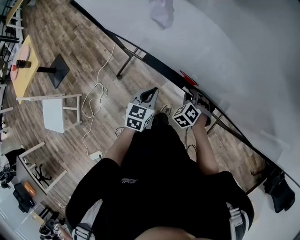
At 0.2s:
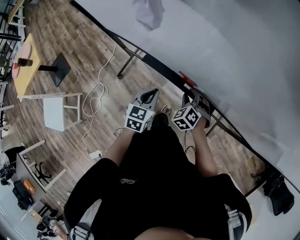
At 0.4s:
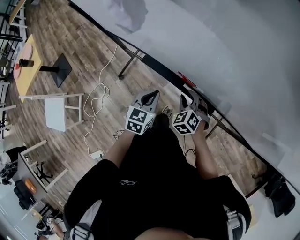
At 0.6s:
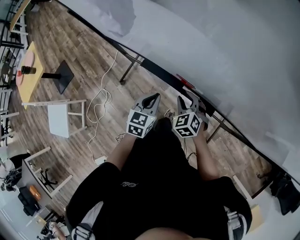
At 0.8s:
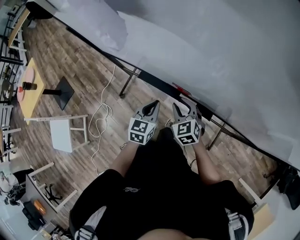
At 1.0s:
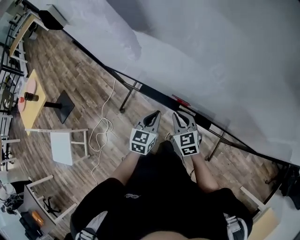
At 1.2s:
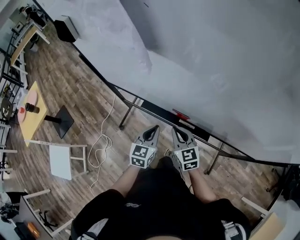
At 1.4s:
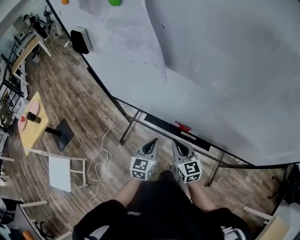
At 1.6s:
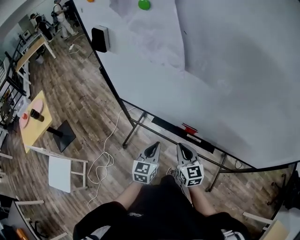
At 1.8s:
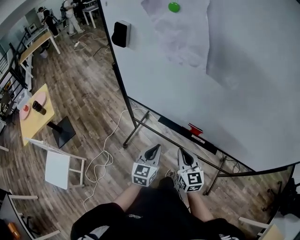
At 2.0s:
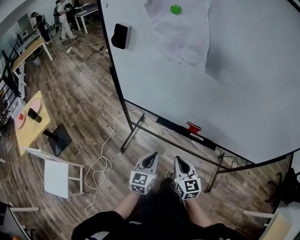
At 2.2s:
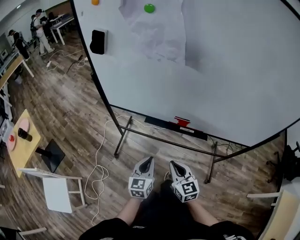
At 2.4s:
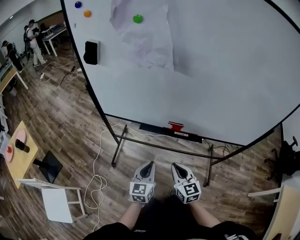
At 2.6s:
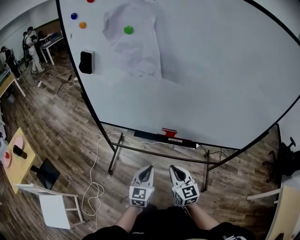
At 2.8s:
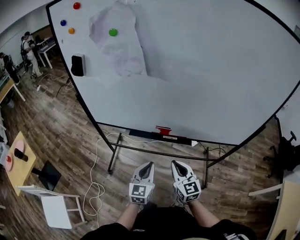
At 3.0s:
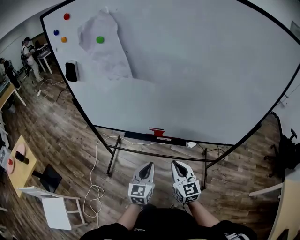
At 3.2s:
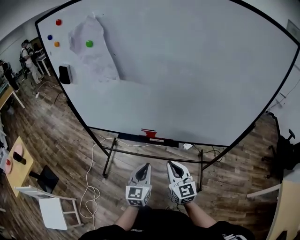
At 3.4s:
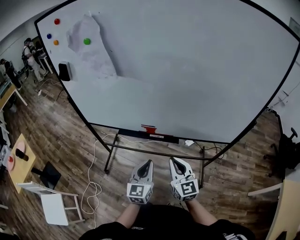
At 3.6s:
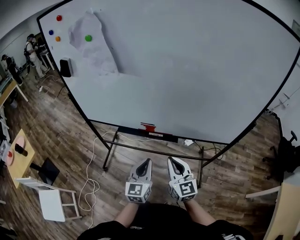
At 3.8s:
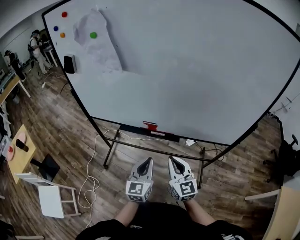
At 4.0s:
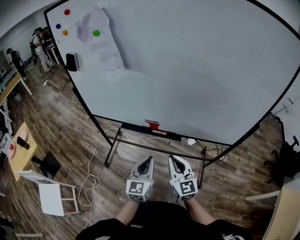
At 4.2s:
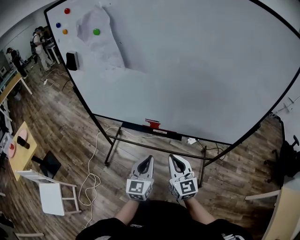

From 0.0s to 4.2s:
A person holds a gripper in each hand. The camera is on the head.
From 0.0s to 1.4s: The left gripper shifts roughly 10 cm upward; the right gripper travels upward by roughly 20 cm, and points its fingers approximately 40 degrees further upward.
From 1.4s to 2.8s: The two grippers go roughly 15 cm backward.
From 2.8s to 4.2s: The two grippers go some 10 cm to the right.

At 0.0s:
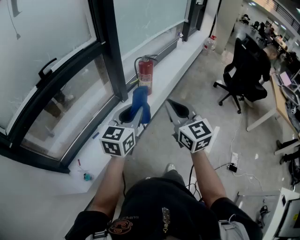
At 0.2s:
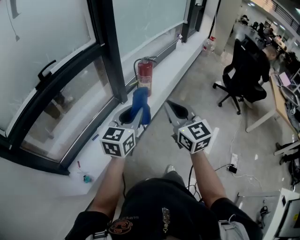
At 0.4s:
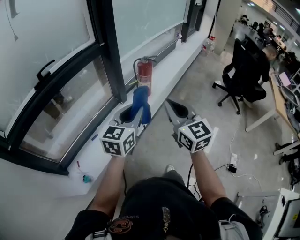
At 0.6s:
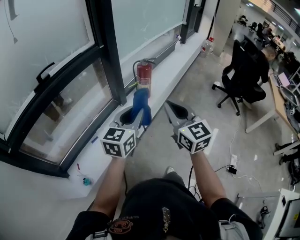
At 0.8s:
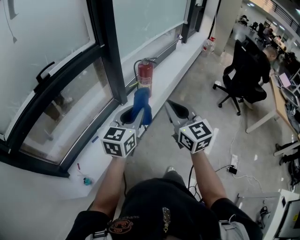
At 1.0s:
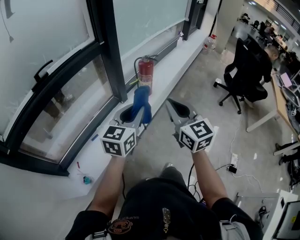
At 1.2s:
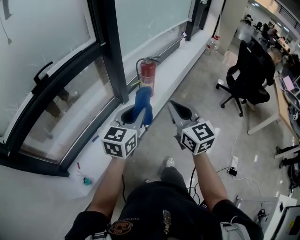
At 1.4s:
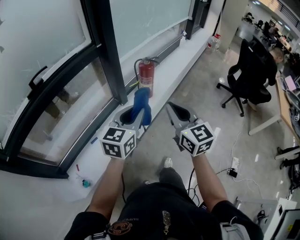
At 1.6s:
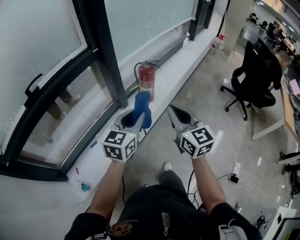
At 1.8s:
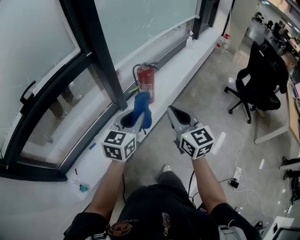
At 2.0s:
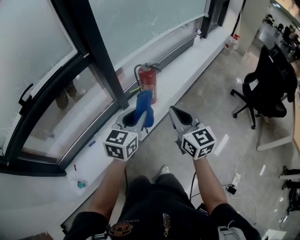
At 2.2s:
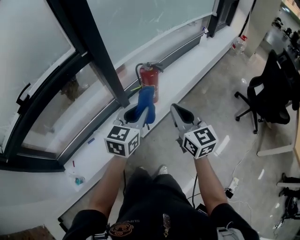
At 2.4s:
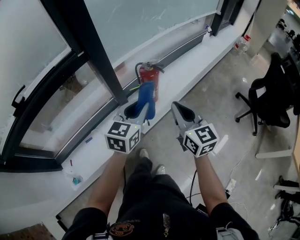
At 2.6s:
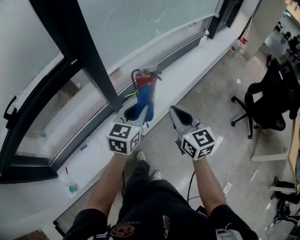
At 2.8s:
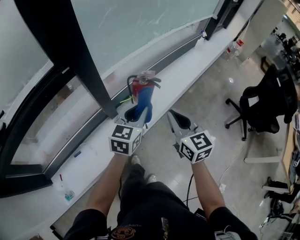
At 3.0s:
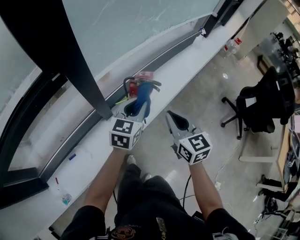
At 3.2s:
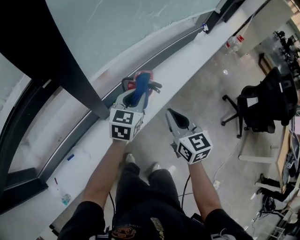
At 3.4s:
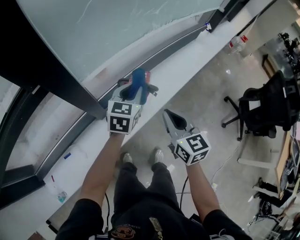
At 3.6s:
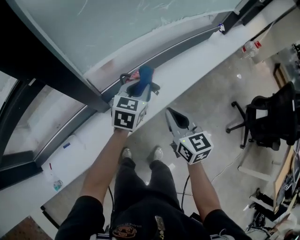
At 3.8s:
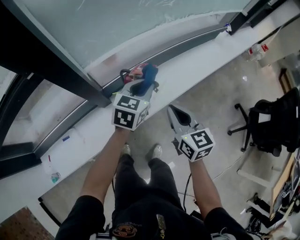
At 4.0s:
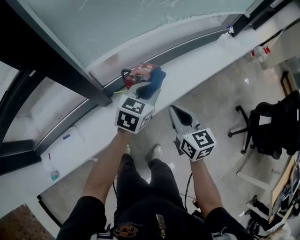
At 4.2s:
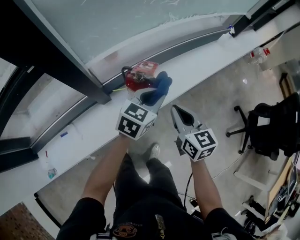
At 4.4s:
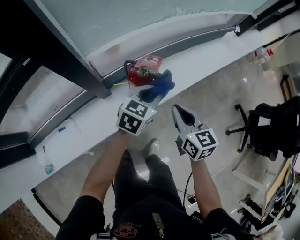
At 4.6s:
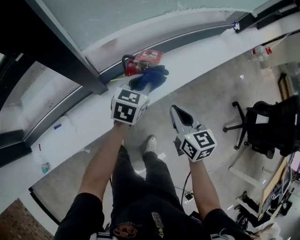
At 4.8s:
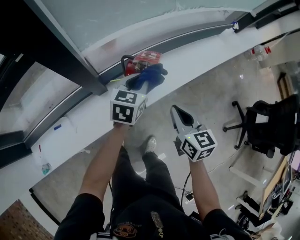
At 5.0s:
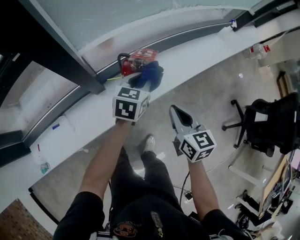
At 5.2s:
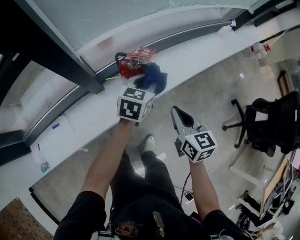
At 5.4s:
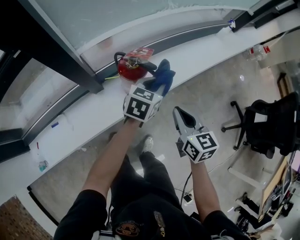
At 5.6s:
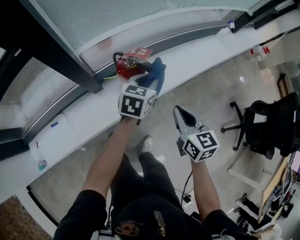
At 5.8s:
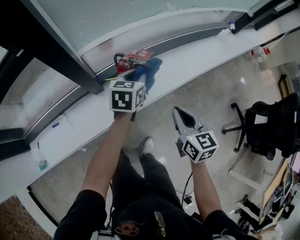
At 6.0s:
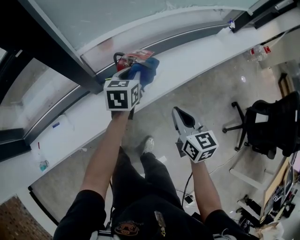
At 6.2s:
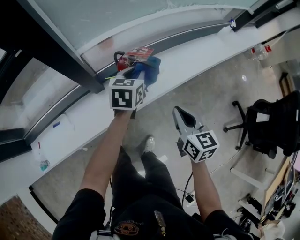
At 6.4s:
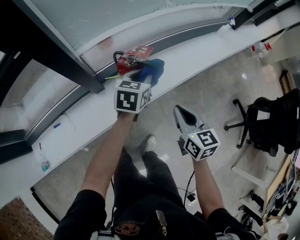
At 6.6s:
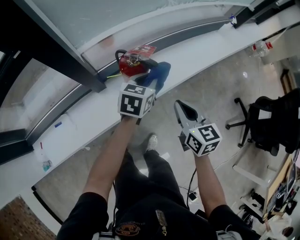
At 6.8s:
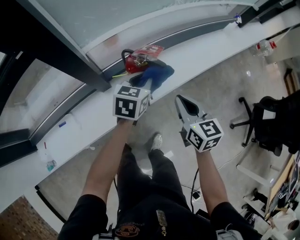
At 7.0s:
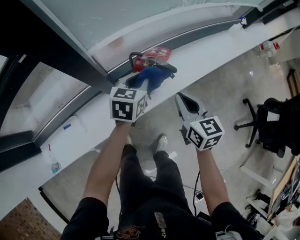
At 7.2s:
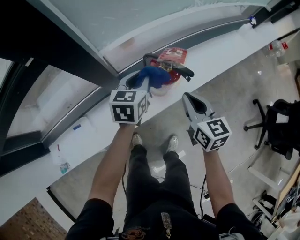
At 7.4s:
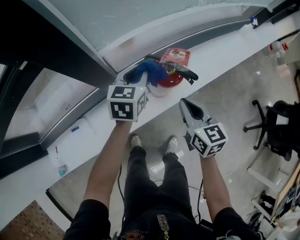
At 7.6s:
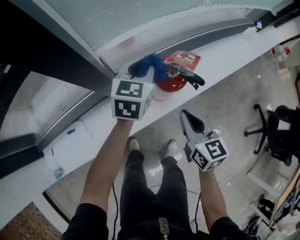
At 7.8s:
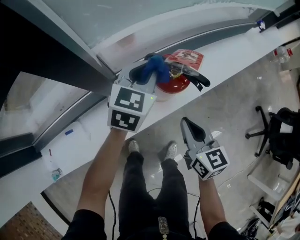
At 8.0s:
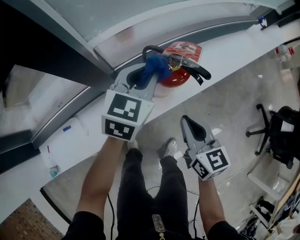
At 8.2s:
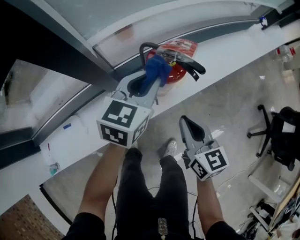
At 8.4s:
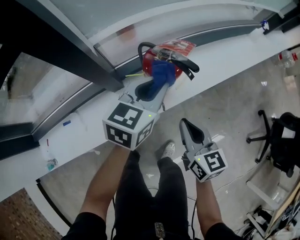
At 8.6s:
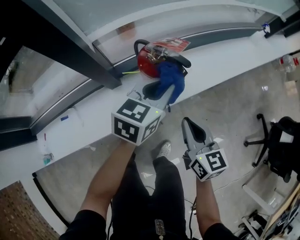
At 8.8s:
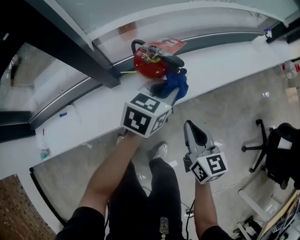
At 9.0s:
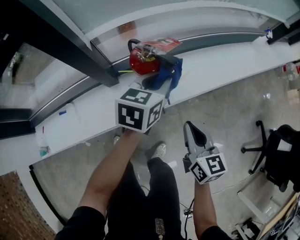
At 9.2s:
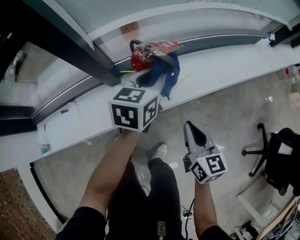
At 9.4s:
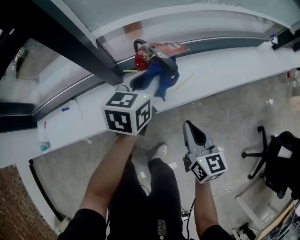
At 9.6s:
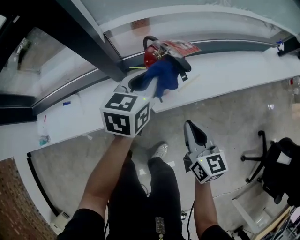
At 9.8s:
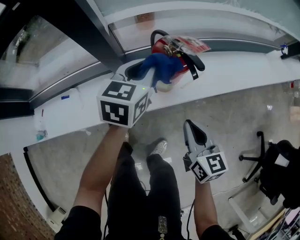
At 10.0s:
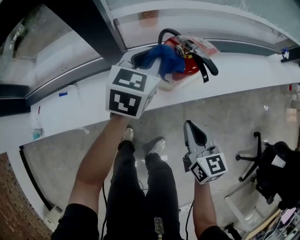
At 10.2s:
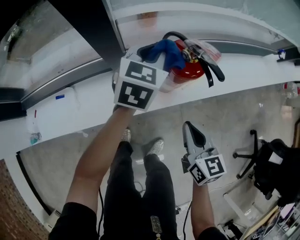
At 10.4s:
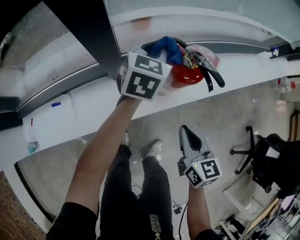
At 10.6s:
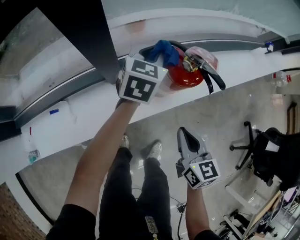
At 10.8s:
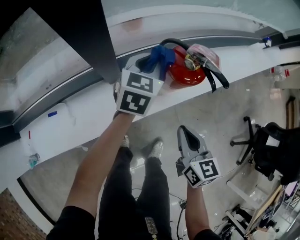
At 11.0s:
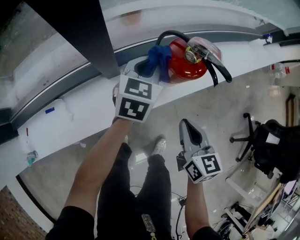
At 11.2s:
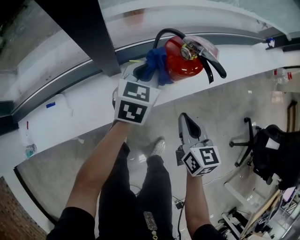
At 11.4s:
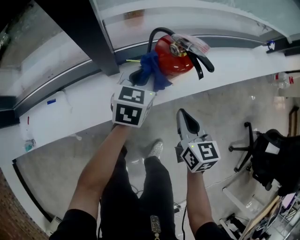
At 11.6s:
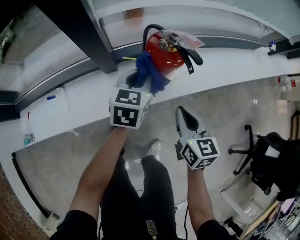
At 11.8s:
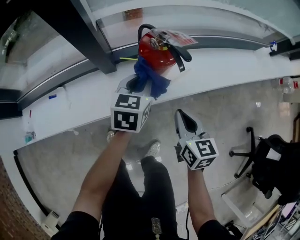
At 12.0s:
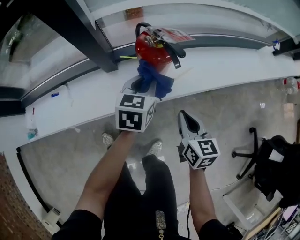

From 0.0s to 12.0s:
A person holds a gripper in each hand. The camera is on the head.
From 0.0s to 1.6s: The grippers both shift forward by roughly 10 cm.
From 1.6s to 3.0s: The two grippers go some 30 cm forward.
From 3.0s to 4.4s: The right gripper heads downward, forward and to the right, covering about 15 cm; the left gripper moves downward, to the right and forward, approximately 15 cm.
From 4.4s to 6.0s: The right gripper changes place by roughly 5 cm. Meanwhile the left gripper moves left and right over some 10 cm, changing direction 2 times, and rotates about 30 degrees.
From 6.0s to 7.6s: The left gripper is displaced to the left and forward by roughly 10 cm, while the right gripper heads to the left, downward and forward, covering roughly 15 cm.
From 7.6s to 9.0s: The grippers both shift to the right and backward by some 15 cm.
From 9.0s to 10.4s: The left gripper travels to the left and forward by some 15 cm, while the right gripper travels to the left by approximately 10 cm.
From 10.4s to 12.0s: The left gripper heads backward, to the right and downward, covering approximately 15 cm, while the right gripper heads to the right, covering some 10 cm.

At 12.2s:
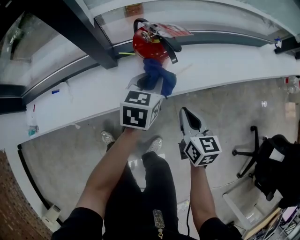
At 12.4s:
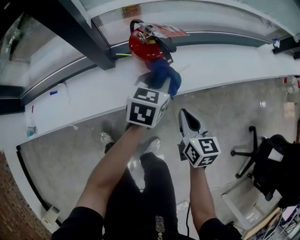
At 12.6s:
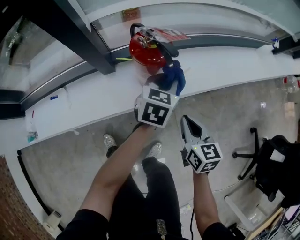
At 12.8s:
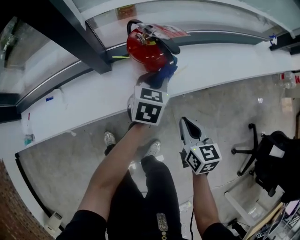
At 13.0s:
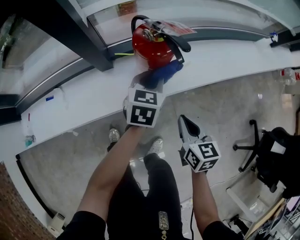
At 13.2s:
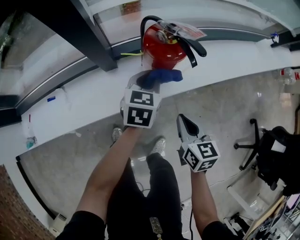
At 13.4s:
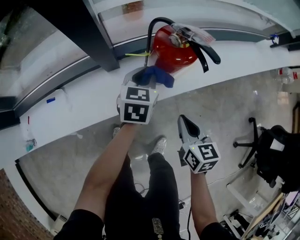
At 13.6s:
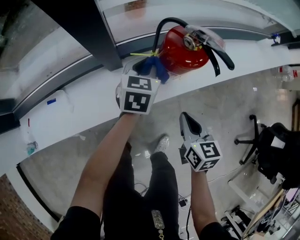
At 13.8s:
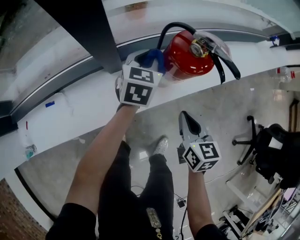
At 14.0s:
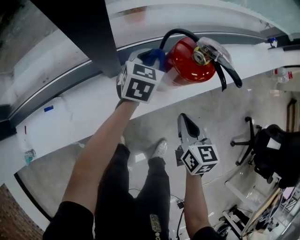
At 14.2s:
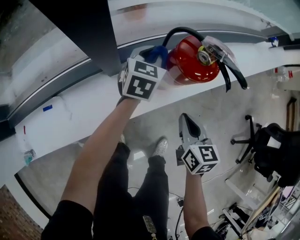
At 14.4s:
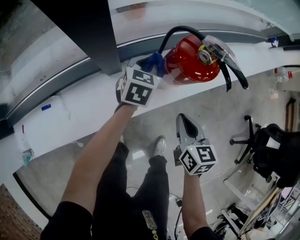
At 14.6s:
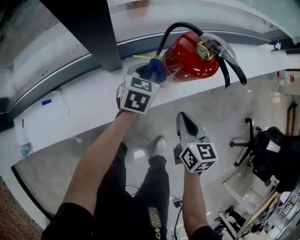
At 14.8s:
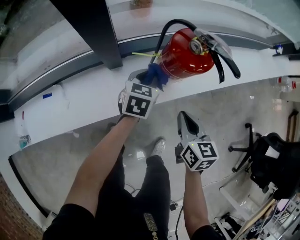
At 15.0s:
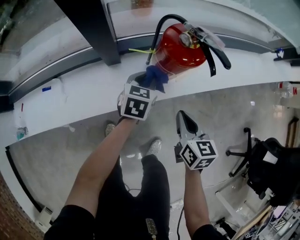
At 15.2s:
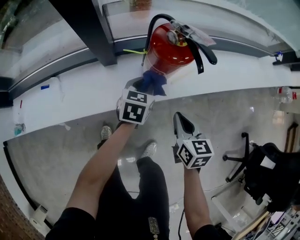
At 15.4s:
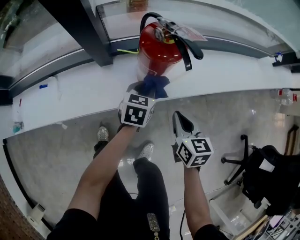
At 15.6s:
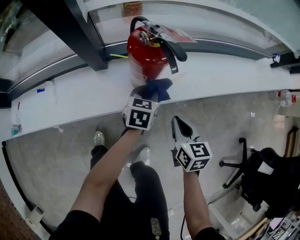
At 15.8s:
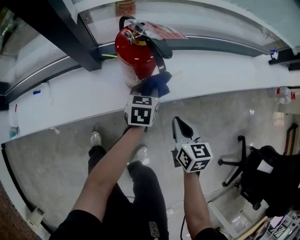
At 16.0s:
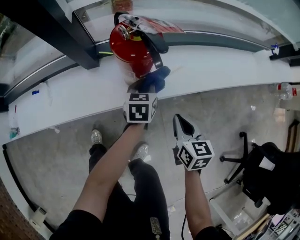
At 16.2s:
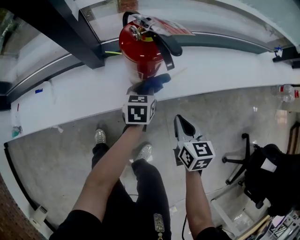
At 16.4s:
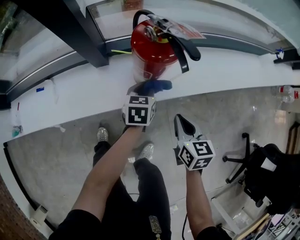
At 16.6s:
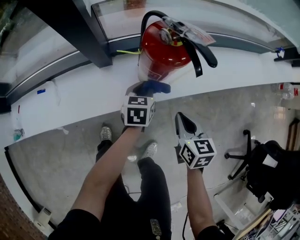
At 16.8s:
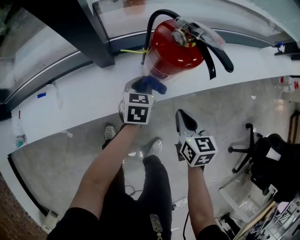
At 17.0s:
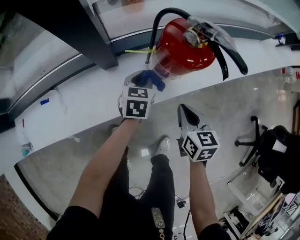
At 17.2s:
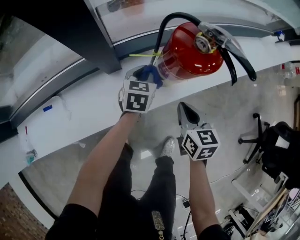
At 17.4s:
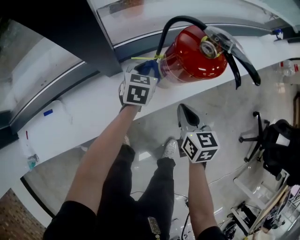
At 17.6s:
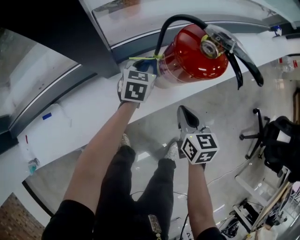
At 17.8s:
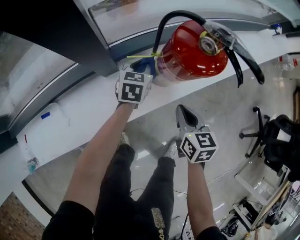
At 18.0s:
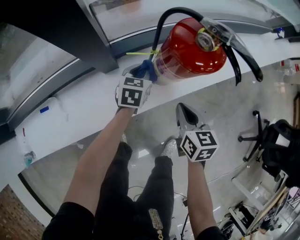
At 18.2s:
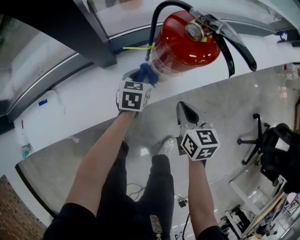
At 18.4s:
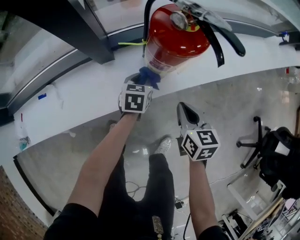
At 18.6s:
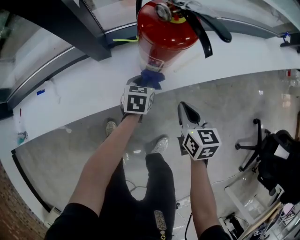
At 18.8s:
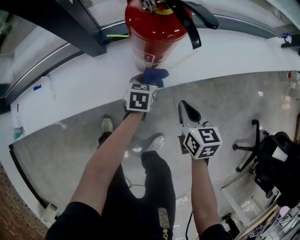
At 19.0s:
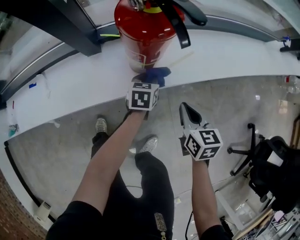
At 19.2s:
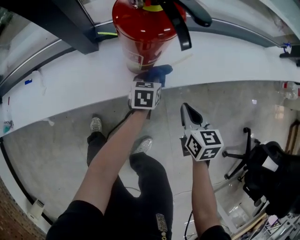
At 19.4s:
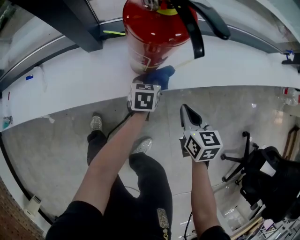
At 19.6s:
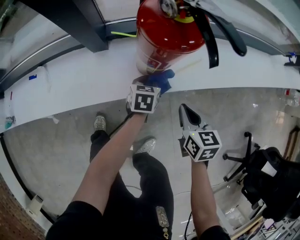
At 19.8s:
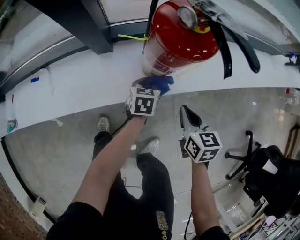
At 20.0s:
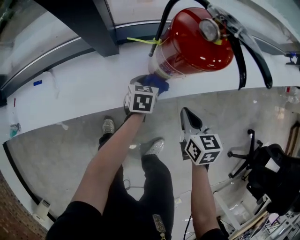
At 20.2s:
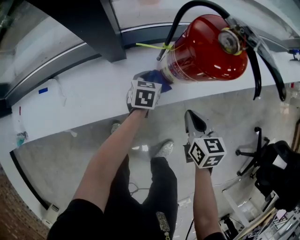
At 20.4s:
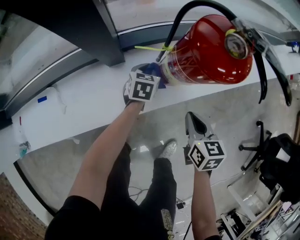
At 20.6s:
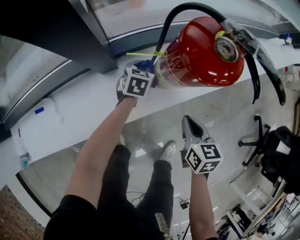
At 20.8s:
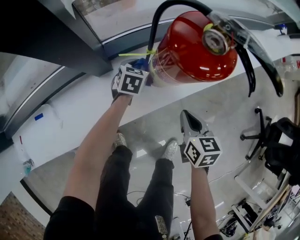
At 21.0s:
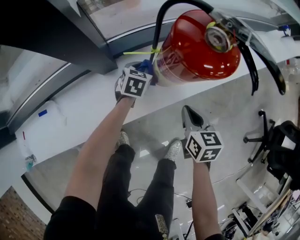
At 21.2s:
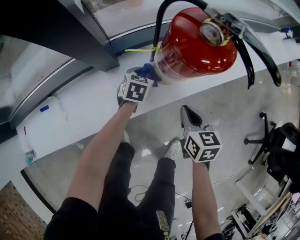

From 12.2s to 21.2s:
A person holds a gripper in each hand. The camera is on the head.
From 12.2s to 13.8s: The right gripper heads to the left, covering roughly 10 cm. The left gripper shifts approximately 15 cm to the left and forward.
From 13.8s to 15.2s: The left gripper shifts approximately 15 cm backward, downward and to the right. The right gripper travels to the right by approximately 5 cm.
From 15.2s to 16.6s: The right gripper reaches some 10 cm to the right, then returns. Meanwhile the left gripper goes to the right and returns, about 10 cm each way.
From 16.6s to 18.2s: The right gripper shifts roughly 5 cm to the left; the left gripper travels to the left and downward by some 10 cm.
From 18.2s to 19.8s: The right gripper shifts roughly 5 cm to the right; the left gripper travels to the right and downward by about 10 cm.
From 19.8s to 21.2s: The right gripper shifts about 5 cm to the left; the left gripper goes approximately 10 cm to the left and forward, and changes its angle by approximately 20 degrees.
